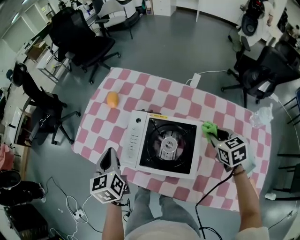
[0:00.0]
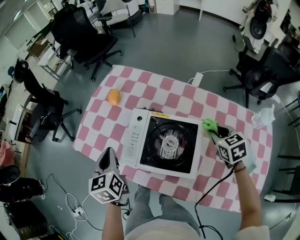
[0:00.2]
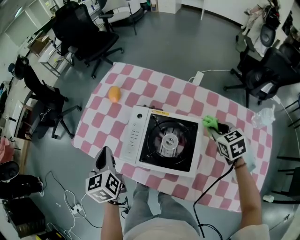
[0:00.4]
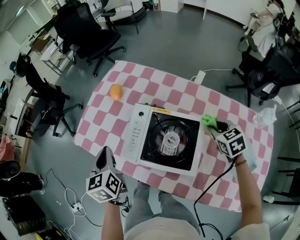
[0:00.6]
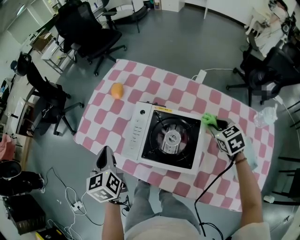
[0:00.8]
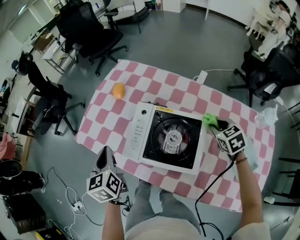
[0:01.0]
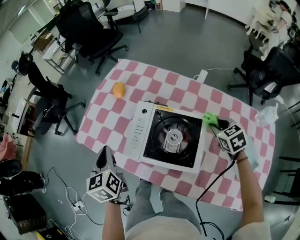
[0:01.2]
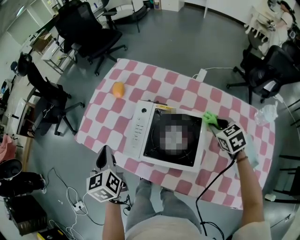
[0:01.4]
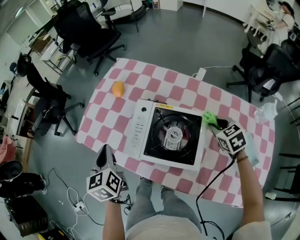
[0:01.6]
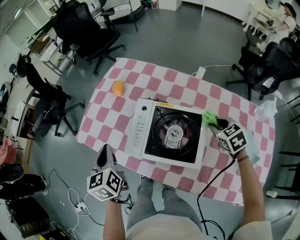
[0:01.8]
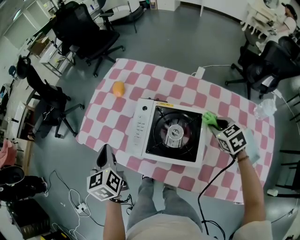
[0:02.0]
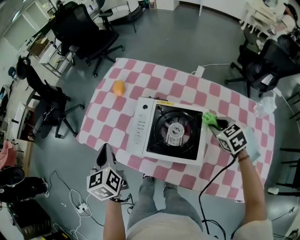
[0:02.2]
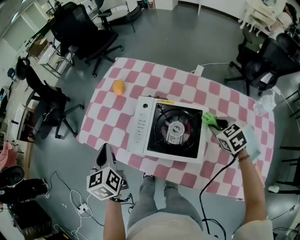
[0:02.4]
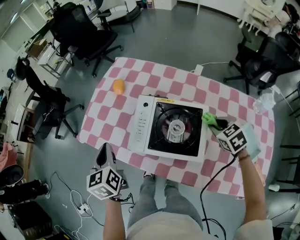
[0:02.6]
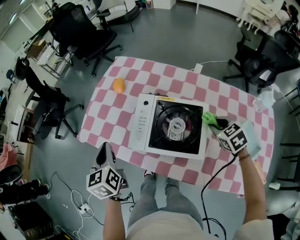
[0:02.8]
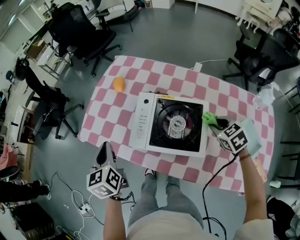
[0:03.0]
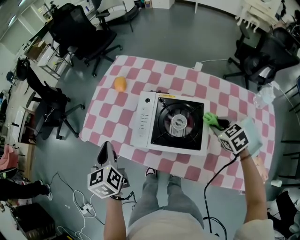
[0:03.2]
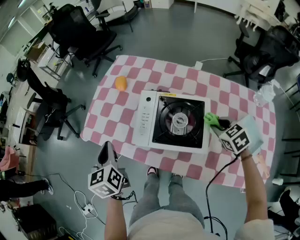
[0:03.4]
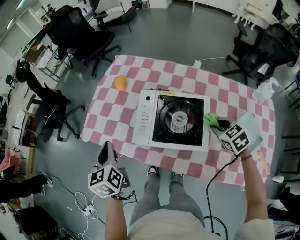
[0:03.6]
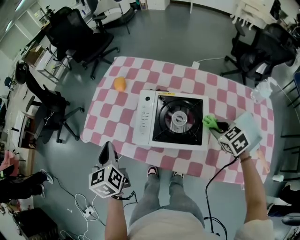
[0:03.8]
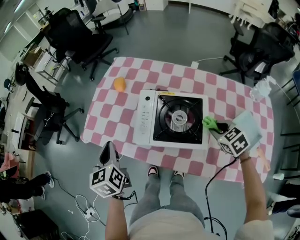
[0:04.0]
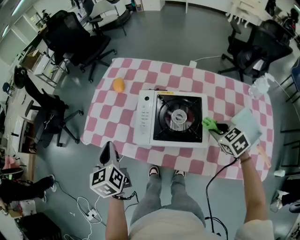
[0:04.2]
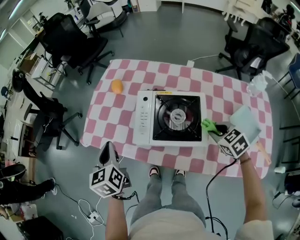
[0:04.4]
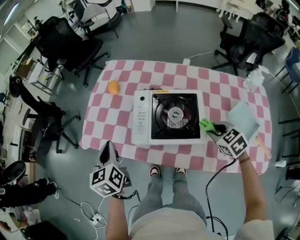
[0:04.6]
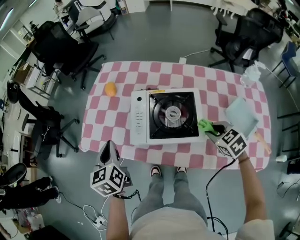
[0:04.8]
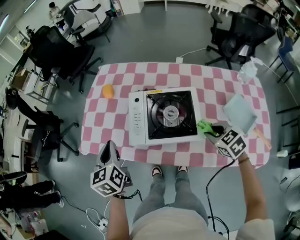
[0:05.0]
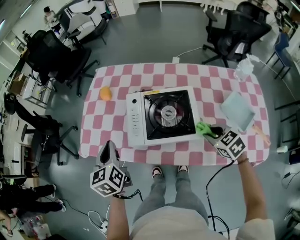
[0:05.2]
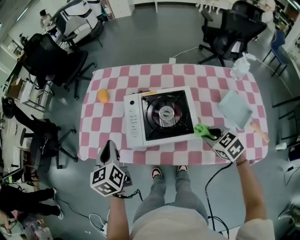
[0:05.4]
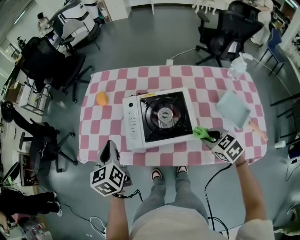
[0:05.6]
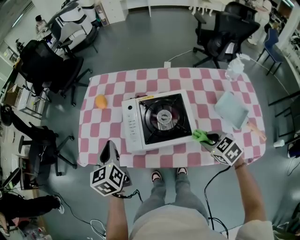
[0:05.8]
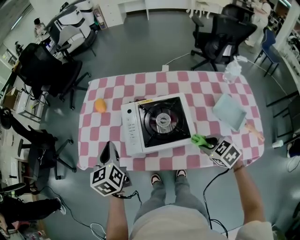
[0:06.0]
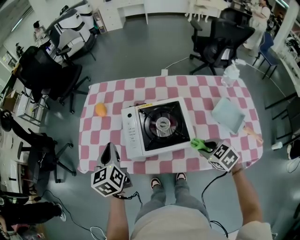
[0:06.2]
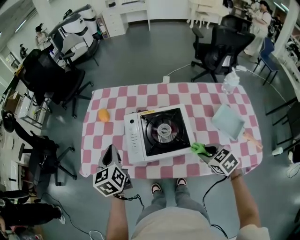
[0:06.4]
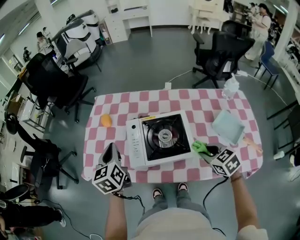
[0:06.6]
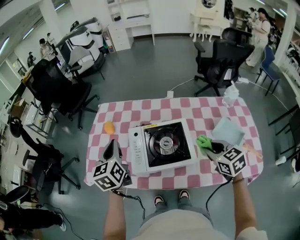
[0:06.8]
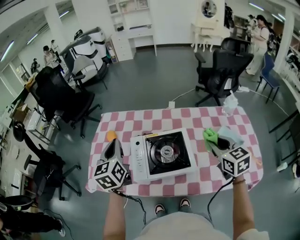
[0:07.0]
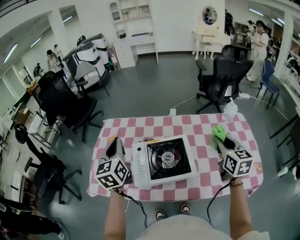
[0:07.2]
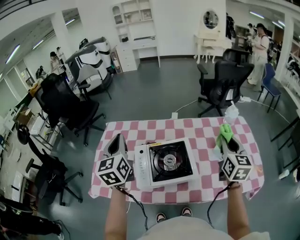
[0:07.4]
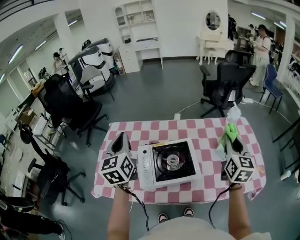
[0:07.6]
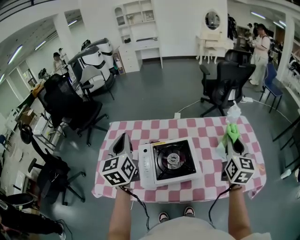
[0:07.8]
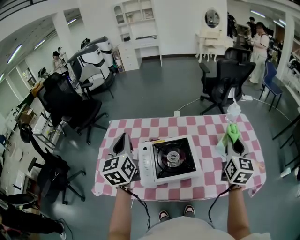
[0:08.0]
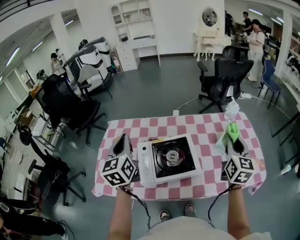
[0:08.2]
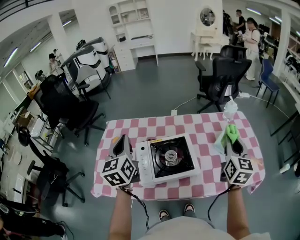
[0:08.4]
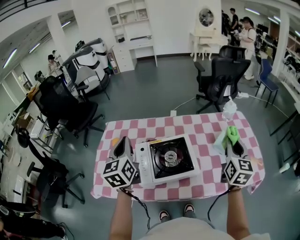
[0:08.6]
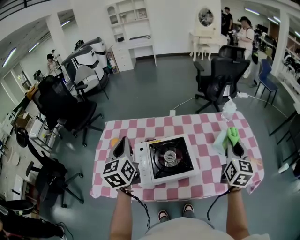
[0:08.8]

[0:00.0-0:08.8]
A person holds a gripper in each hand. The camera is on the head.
0:00.0 to 0:01.4: The left gripper changes place by about 5 cm.
0:01.4 to 0:03.0: The right gripper is displaced backward by roughly 5 cm.
0:03.0 to 0:04.4: The right gripper travels backward by approximately 5 cm.
0:04.4 to 0:05.8: The right gripper moves backward, approximately 5 cm. The left gripper goes some 5 cm to the right.
0:05.8 to 0:07.4: The two grippers go roughly 20 cm upward. The left gripper swivels roughly 20 degrees; the right gripper tips its fingers upward by some 40 degrees.
0:07.4 to 0:08.8: The right gripper ends up roughly 5 cm from where it was.

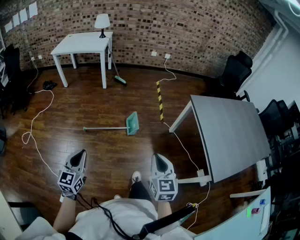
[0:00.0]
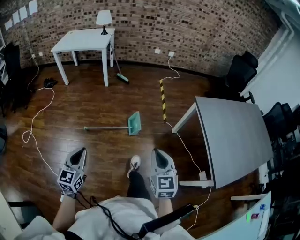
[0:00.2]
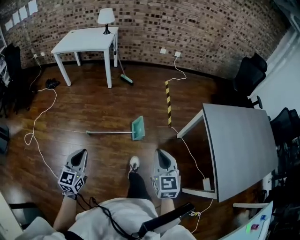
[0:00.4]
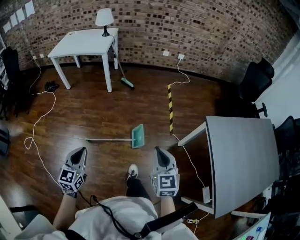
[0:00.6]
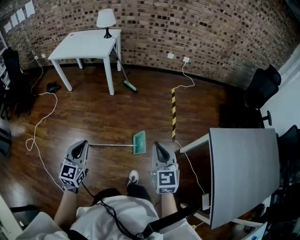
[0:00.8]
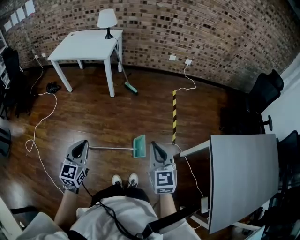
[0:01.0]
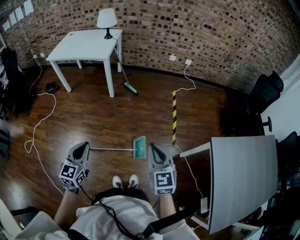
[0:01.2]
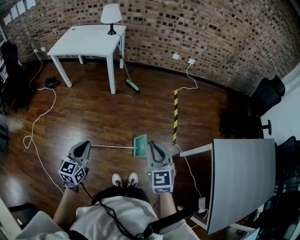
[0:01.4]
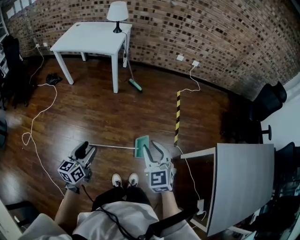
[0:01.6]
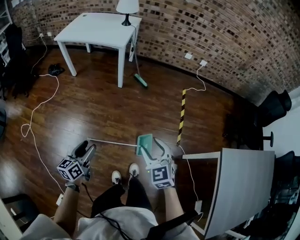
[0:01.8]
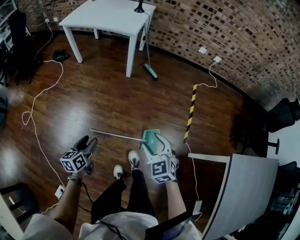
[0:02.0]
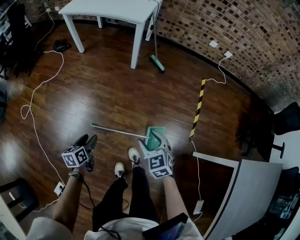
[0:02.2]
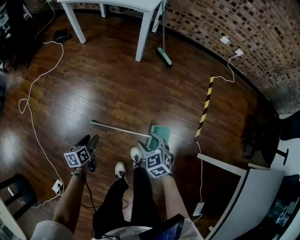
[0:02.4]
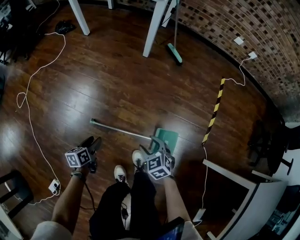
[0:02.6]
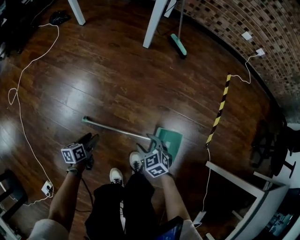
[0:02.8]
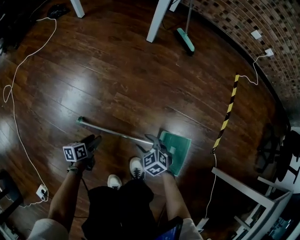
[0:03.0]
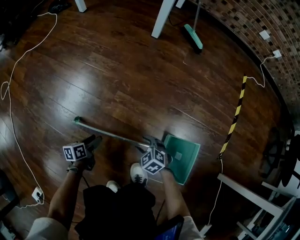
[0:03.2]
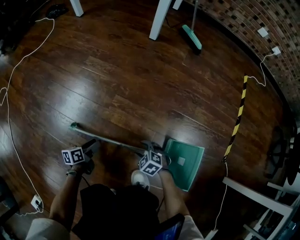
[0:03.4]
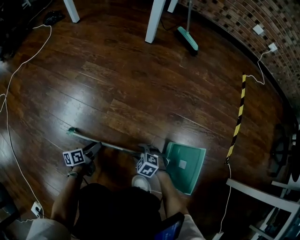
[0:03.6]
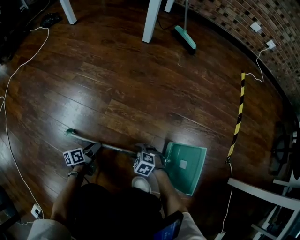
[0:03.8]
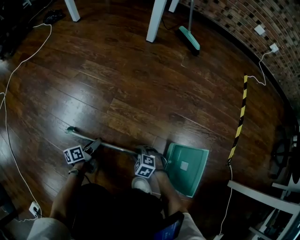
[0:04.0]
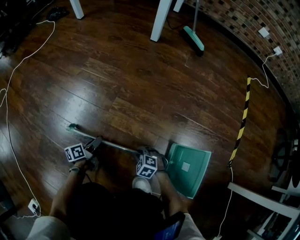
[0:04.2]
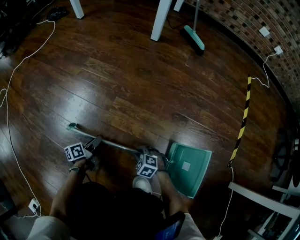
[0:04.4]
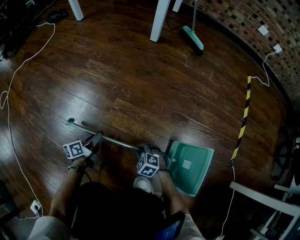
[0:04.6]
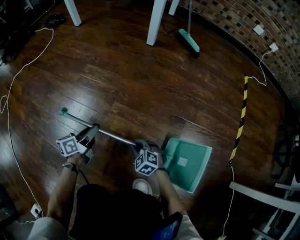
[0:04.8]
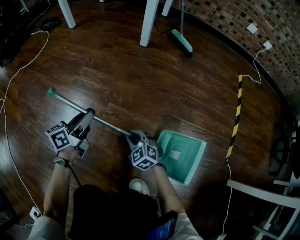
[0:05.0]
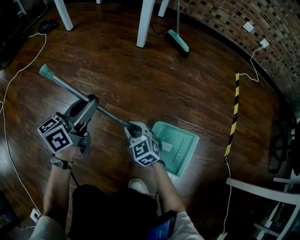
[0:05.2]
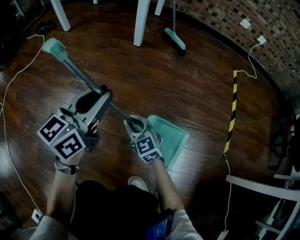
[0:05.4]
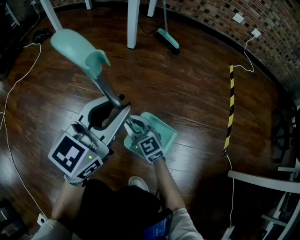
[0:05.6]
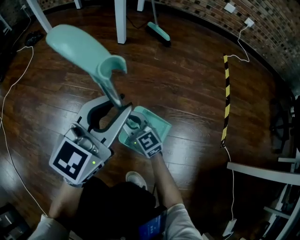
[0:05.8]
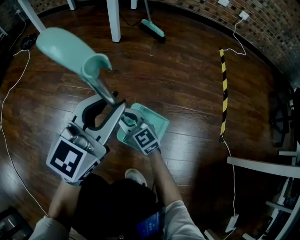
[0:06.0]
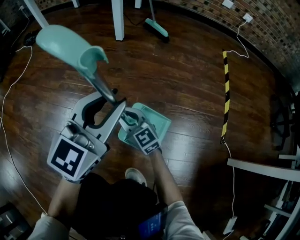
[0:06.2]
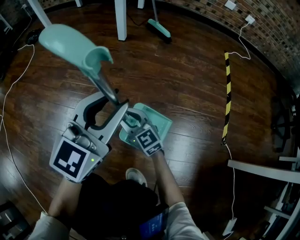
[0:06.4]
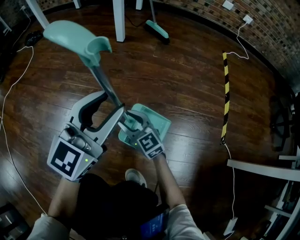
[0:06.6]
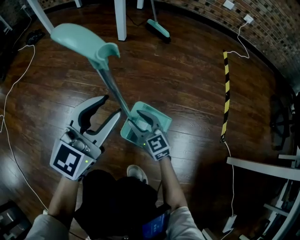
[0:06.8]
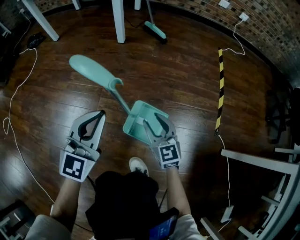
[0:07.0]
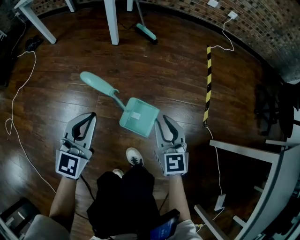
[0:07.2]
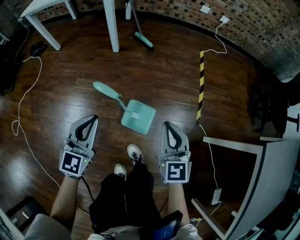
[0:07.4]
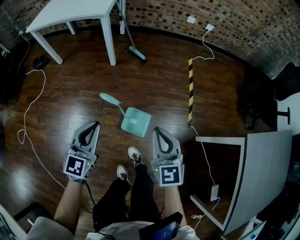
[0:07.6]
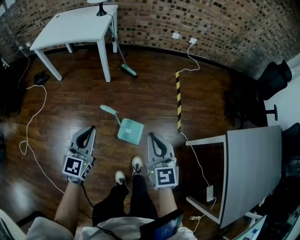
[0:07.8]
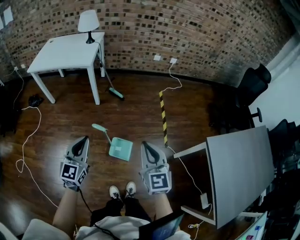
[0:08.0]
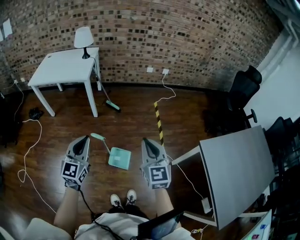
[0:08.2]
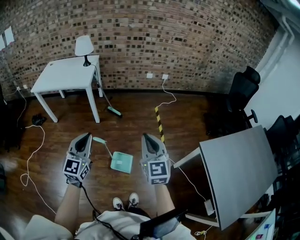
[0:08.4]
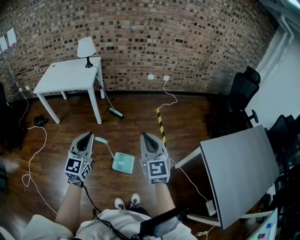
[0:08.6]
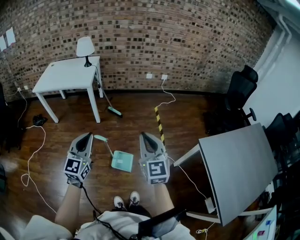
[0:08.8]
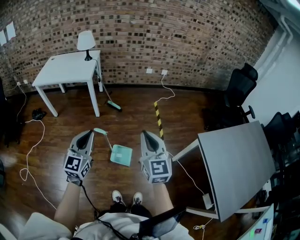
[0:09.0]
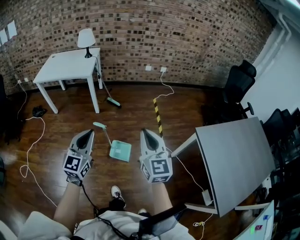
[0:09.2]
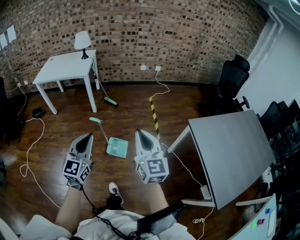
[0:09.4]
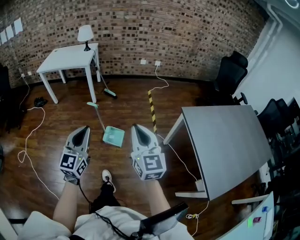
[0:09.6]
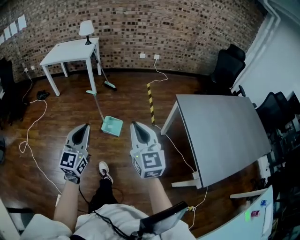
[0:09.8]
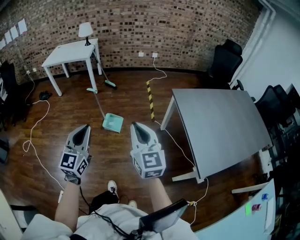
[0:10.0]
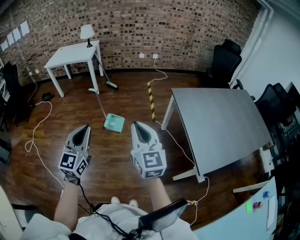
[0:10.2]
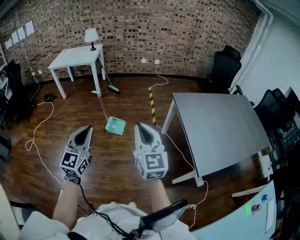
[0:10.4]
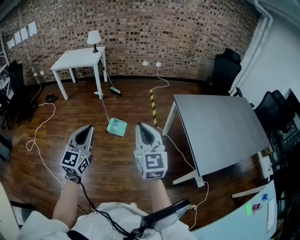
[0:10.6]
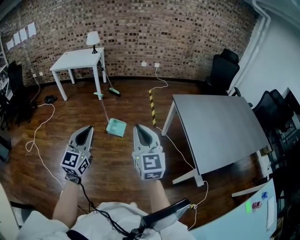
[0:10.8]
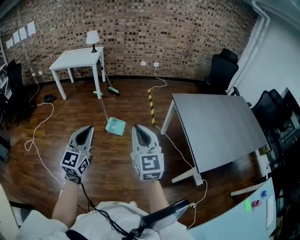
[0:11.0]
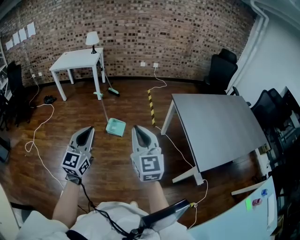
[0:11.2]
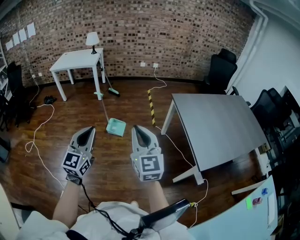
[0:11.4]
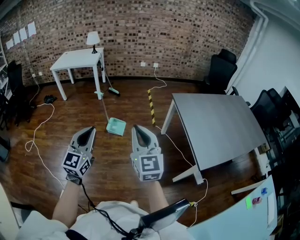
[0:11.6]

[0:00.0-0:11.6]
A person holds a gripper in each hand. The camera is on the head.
0:00.0 to 0:01.4: The two grippers travel together, forward, approximately 40 cm.
0:01.4 to 0:02.8: The two grippers go about 60 cm downward. The left gripper rotates around the line of its fingers by some 50 degrees, counterclockwise from behind, and opens its fingers; the right gripper tilts its fingers about 40 degrees downward, and opens up.
0:02.8 to 0:04.4: The grippers both shift downward by some 30 cm. The left gripper swivels roughly 20 degrees, and closes; the right gripper changes its angle by about 30 degrees, and closes up.
0:04.4 to 0:05.8: The right gripper goes approximately 30 cm upward and forward, and points its fingers roughly 50 degrees further upward. The left gripper heads upward and to the right, covering approximately 50 cm, and twists some 80 degrees clockwise, seen from behind.
0:05.8 to 0:07.2: The left gripper is displaced upward, to the left and backward by about 15 cm, and opens, then closes again, while the right gripper goes approximately 30 cm upward and to the right, and turns by roughly 30 degrees.
0:07.2 to 0:08.8: Both grippers travel together upward, some 50 cm. The right gripper turns by about 20 degrees, and closes.
0:08.8 to 0:10.2: Both grippers are carried backward, approximately 50 cm.
0:10.2 to 0:11.6: The grippers both shift backward by about 10 cm.

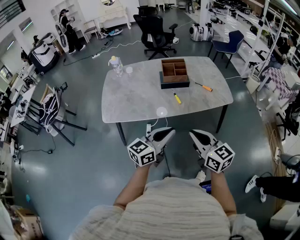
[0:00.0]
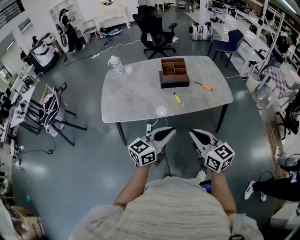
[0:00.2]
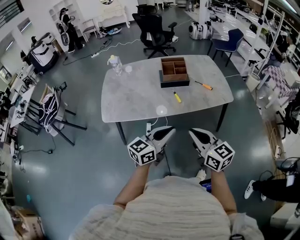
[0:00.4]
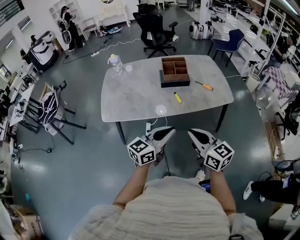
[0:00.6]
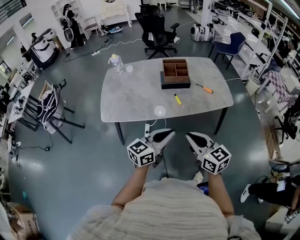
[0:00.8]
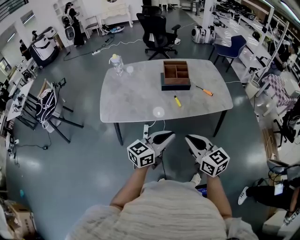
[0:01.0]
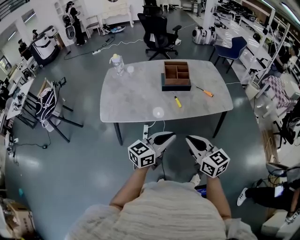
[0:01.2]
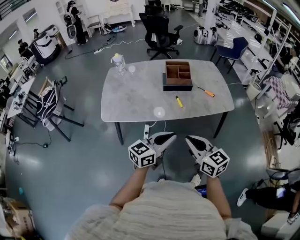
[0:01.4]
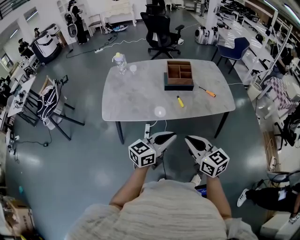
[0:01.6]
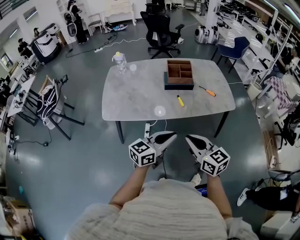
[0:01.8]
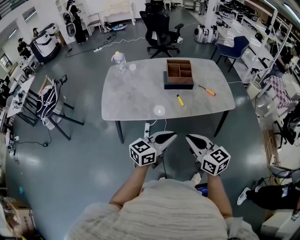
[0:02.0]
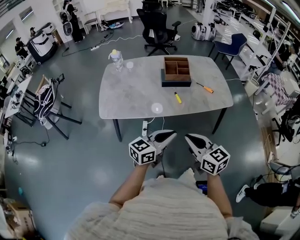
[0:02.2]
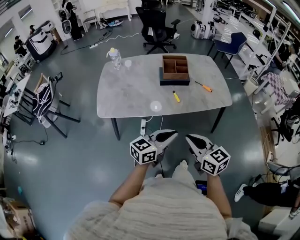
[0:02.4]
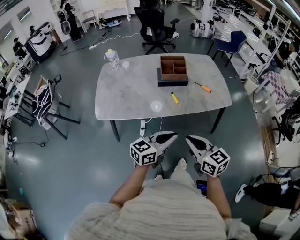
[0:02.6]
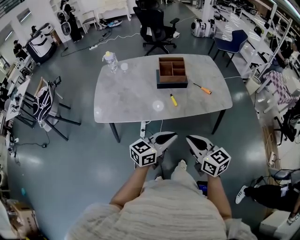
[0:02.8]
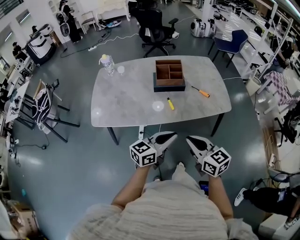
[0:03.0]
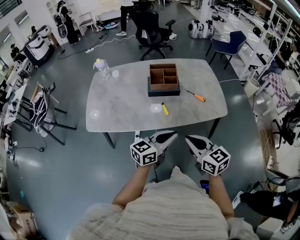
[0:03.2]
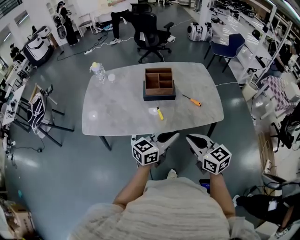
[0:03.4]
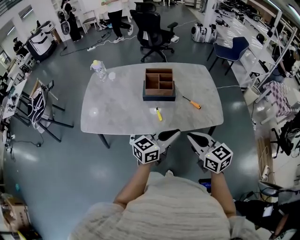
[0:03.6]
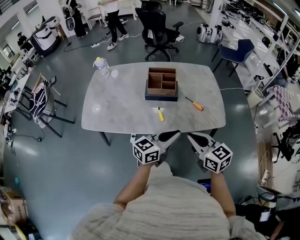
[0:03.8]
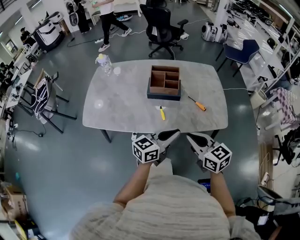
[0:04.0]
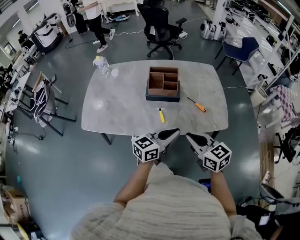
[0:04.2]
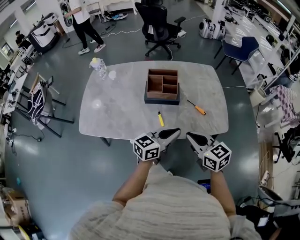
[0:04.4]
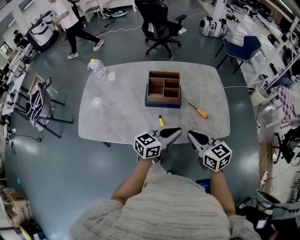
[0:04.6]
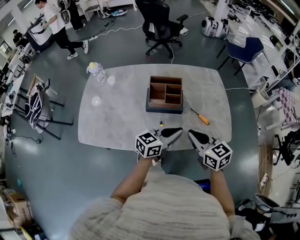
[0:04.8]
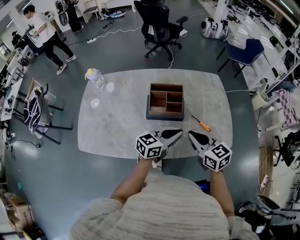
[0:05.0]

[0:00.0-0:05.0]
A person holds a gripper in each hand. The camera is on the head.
0:00.0 to 0:01.6: The grippers make only small movements.
0:01.6 to 0:03.4: The grippers both shift forward and to the right by some 20 cm.
0:03.4 to 0:05.0: The grippers both shift forward by roughly 25 cm.
